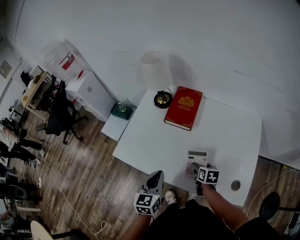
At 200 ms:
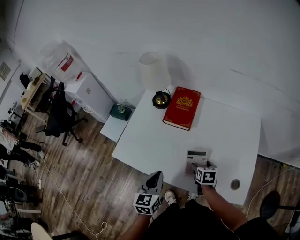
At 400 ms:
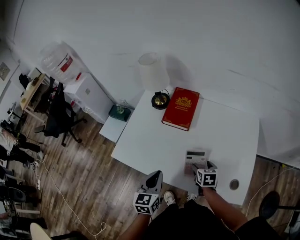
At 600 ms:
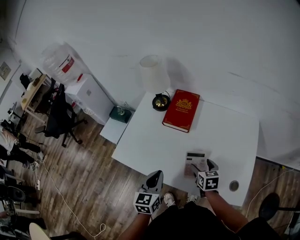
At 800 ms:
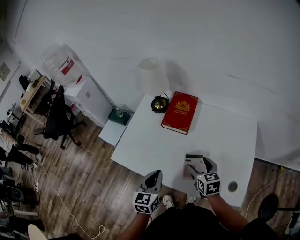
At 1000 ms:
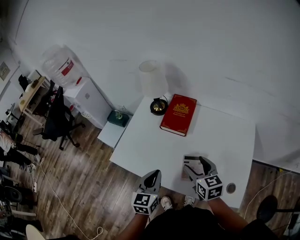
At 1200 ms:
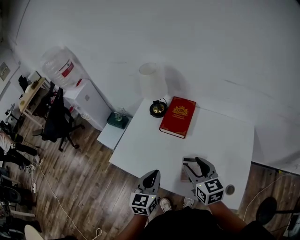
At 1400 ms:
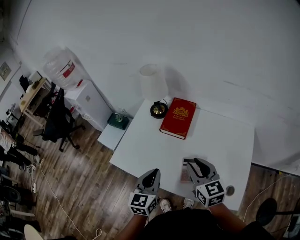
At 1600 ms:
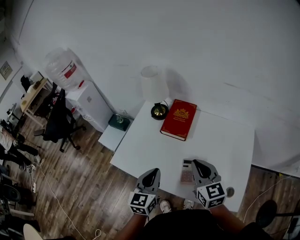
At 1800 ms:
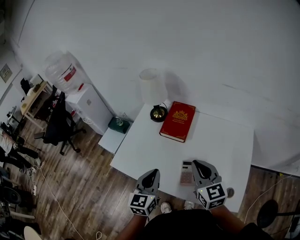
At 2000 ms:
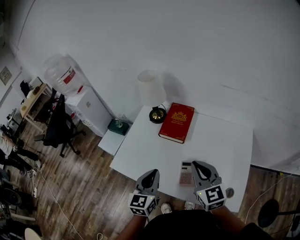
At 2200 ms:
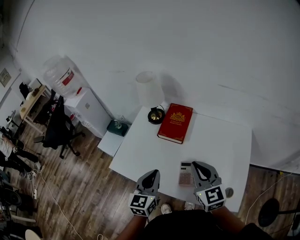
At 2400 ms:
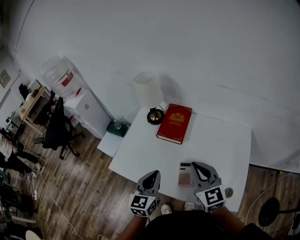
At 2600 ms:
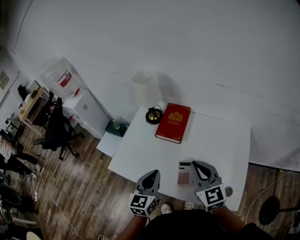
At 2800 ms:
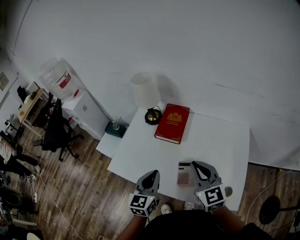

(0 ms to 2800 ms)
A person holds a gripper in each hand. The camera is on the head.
0 ms - 1400 ms: The right gripper travels upward by roughly 25 cm, angles its fingers upward, by roughly 30 degrees, and closes, while the left gripper travels upward by roughly 5 cm.
1400 ms - 2800 ms: There are only small adjustments of the grippers.

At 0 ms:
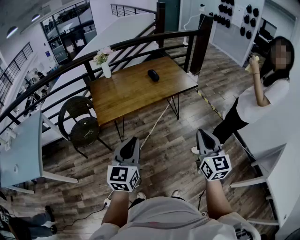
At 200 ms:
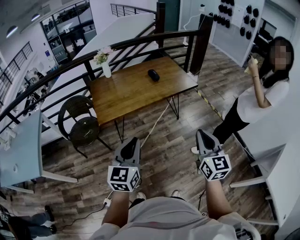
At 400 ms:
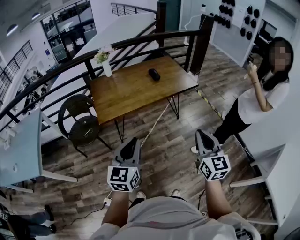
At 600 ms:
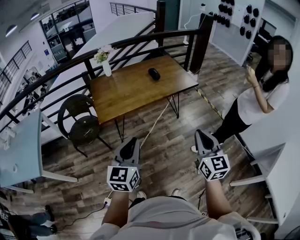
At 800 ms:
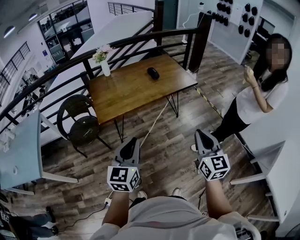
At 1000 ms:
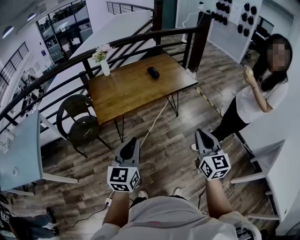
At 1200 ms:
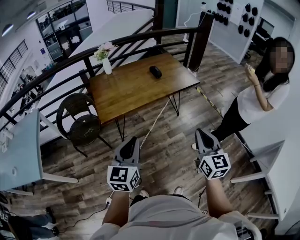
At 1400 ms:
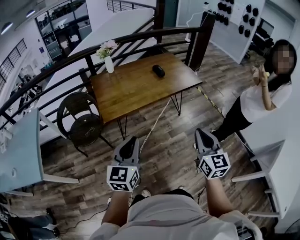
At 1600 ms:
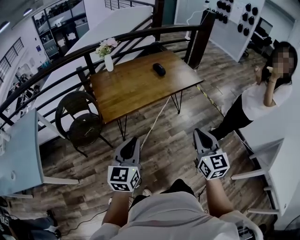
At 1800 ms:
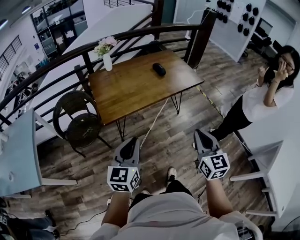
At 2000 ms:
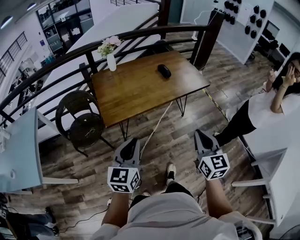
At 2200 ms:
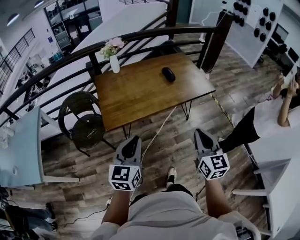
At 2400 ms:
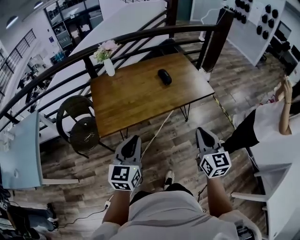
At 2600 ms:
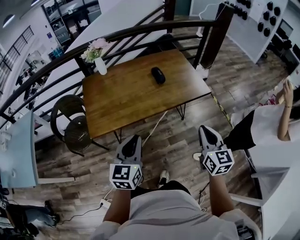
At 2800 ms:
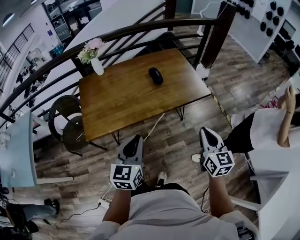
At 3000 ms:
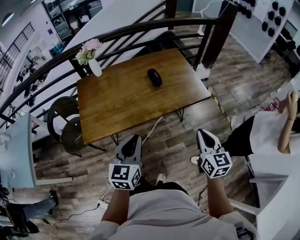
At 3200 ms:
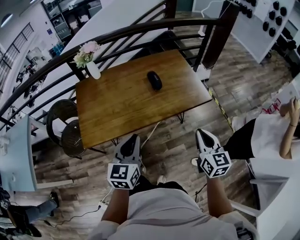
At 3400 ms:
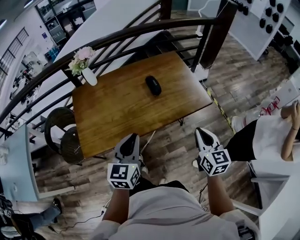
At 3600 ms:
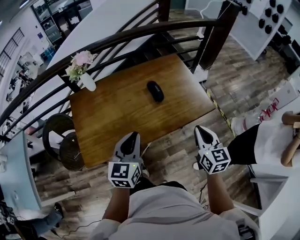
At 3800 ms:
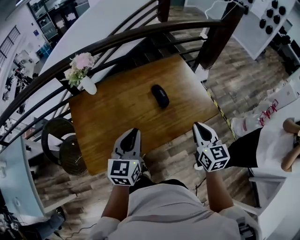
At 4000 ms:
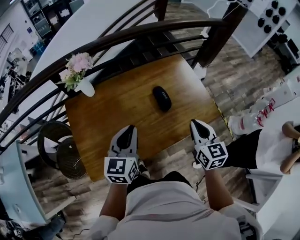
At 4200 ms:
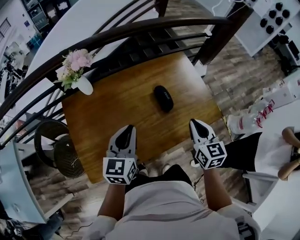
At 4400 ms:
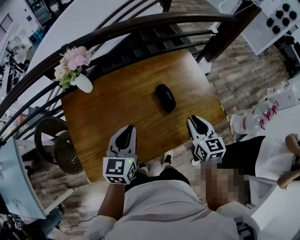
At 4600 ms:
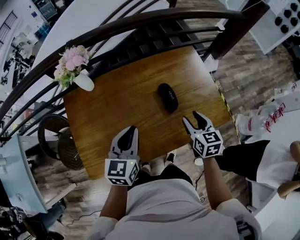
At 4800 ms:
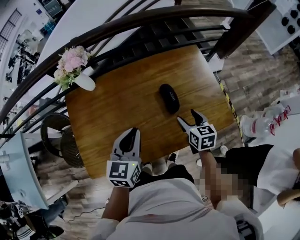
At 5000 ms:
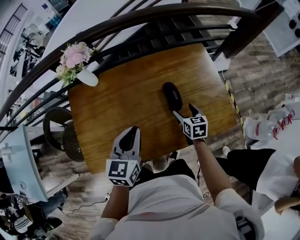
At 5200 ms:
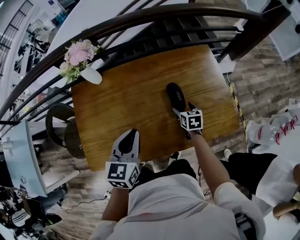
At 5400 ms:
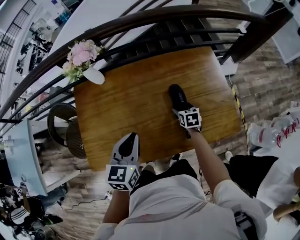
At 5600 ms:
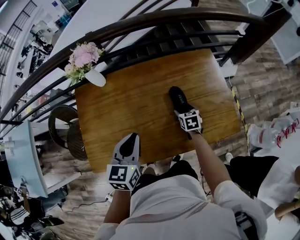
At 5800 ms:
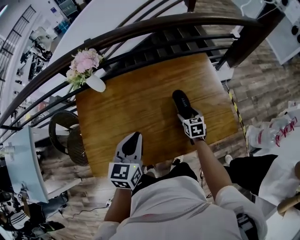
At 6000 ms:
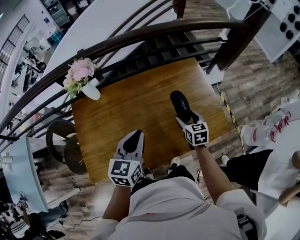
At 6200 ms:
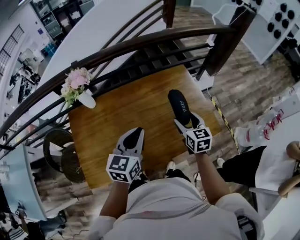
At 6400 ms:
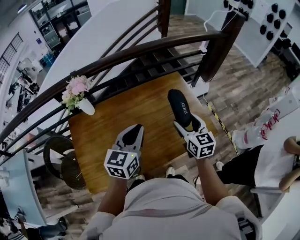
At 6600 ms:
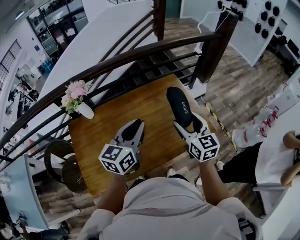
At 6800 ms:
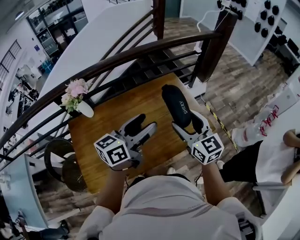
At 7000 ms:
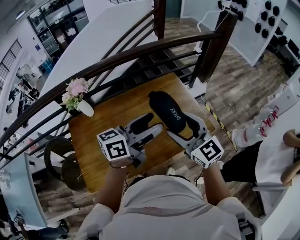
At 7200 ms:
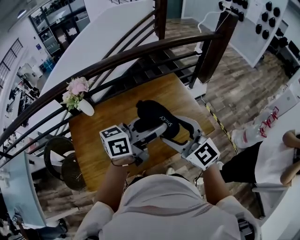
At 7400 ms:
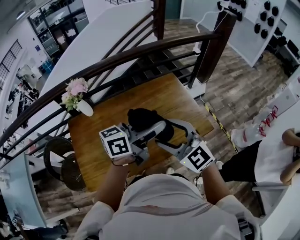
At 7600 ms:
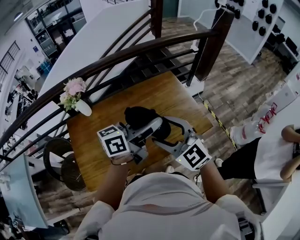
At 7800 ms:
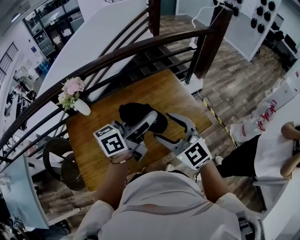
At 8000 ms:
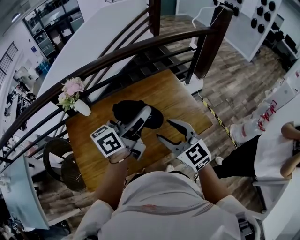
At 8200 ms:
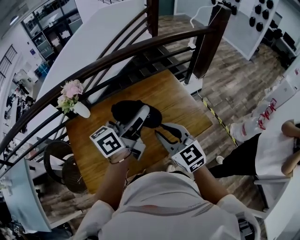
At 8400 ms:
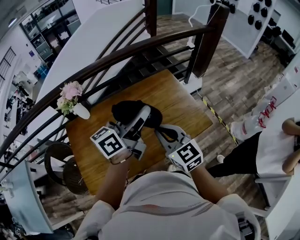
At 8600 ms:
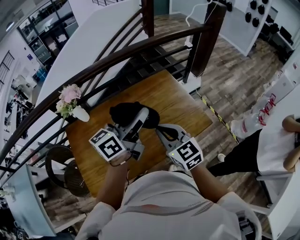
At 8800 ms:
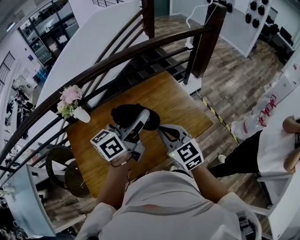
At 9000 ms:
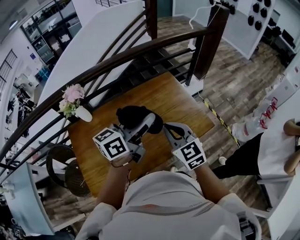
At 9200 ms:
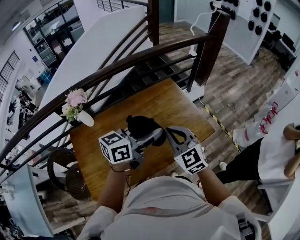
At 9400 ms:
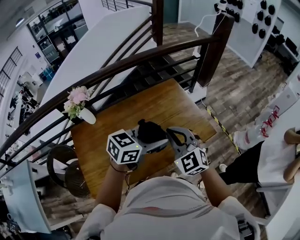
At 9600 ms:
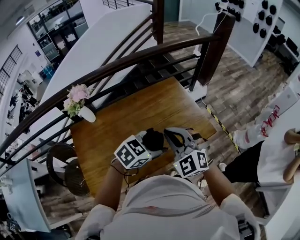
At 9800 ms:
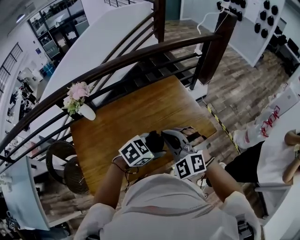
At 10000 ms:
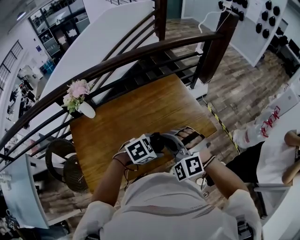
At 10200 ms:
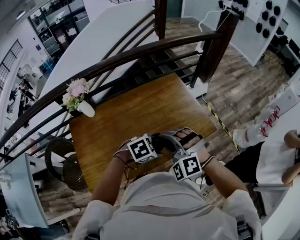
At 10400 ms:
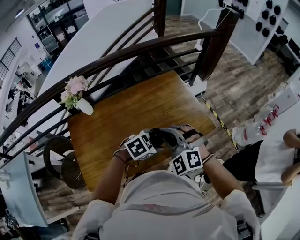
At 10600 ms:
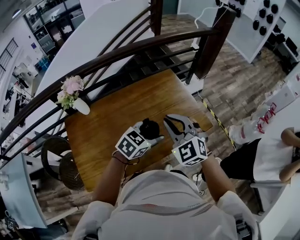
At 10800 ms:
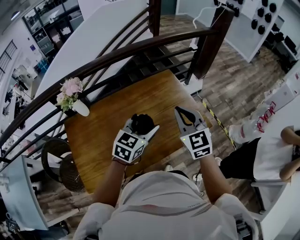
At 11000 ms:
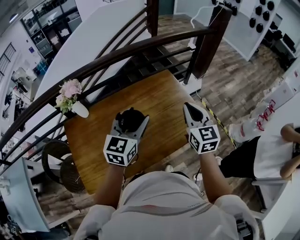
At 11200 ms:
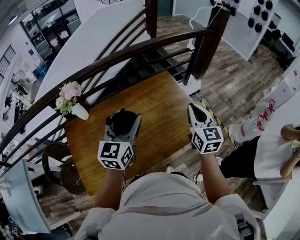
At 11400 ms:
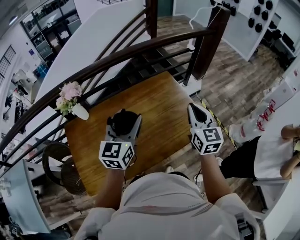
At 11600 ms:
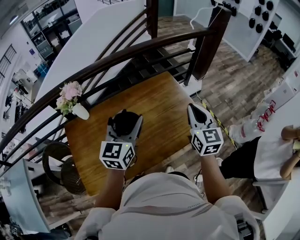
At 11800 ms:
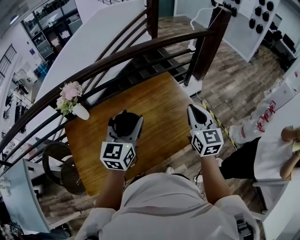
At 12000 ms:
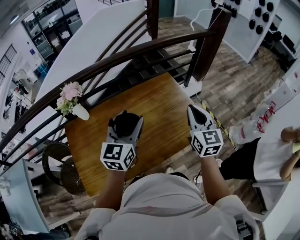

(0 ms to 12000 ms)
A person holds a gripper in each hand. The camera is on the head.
0 ms - 1600 ms: Both grippers move to the left, roughly 10 cm.
1600 ms - 3000 ms: Both grippers travel together forward and to the right, roughly 35 cm.
3000 ms - 4400 ms: The right gripper heads forward and to the left, covering roughly 35 cm. Meanwhile the left gripper travels forward by roughly 30 cm.
4400 ms - 6000 ms: The right gripper shifts some 15 cm downward and forward, and opens its fingers, while the left gripper moves to the right, roughly 5 cm.
6000 ms - 7600 ms: The left gripper travels upward and to the right by about 20 cm, tilts its fingers about 30 degrees upward, and opens. Meanwhile the right gripper is displaced upward and backward by roughly 30 cm, and rotates about 50 degrees.
7600 ms - 9000 ms: The right gripper changes place by about 5 cm, turns by approximately 20 degrees, and closes.
9000 ms - 10400 ms: The left gripper is displaced downward by roughly 20 cm, and tilts its fingers some 60 degrees downward; the right gripper shifts by approximately 5 cm, and rolls counterclockwise, seen from behind, by some 50 degrees.
10400 ms - 12000 ms: The right gripper is displaced to the right, forward and upward by roughly 20 cm, and rolls clockwise, seen from behind, by approximately 60 degrees. The left gripper shifts about 20 cm upward, to the left and forward, and tilts its fingers some 40 degrees upward.

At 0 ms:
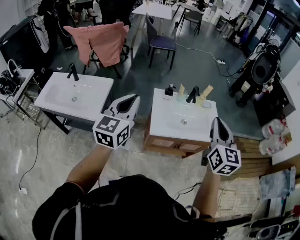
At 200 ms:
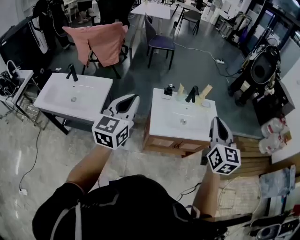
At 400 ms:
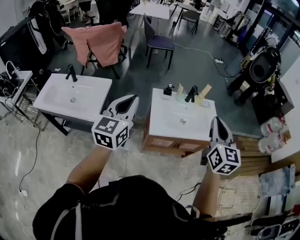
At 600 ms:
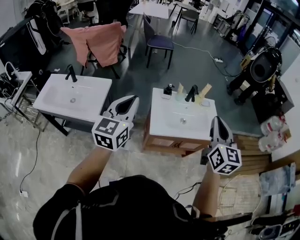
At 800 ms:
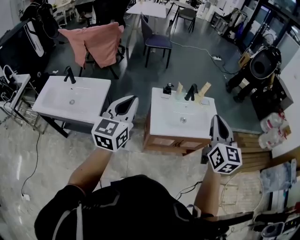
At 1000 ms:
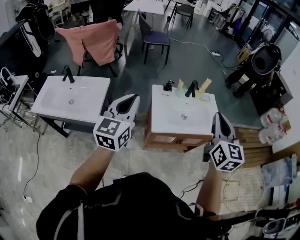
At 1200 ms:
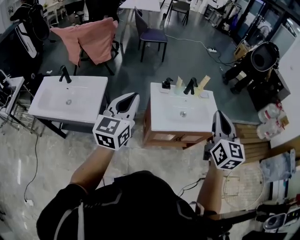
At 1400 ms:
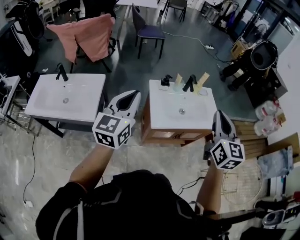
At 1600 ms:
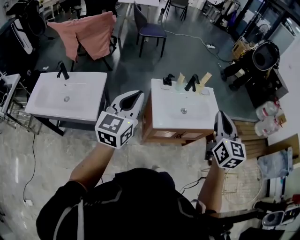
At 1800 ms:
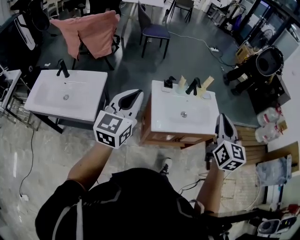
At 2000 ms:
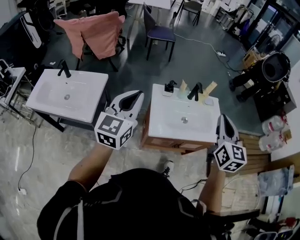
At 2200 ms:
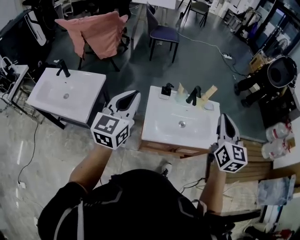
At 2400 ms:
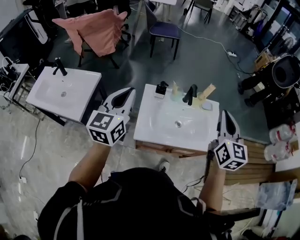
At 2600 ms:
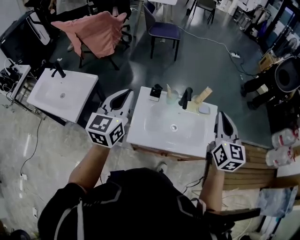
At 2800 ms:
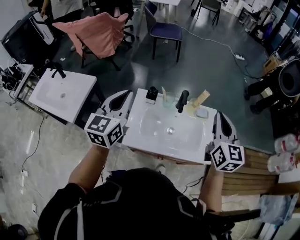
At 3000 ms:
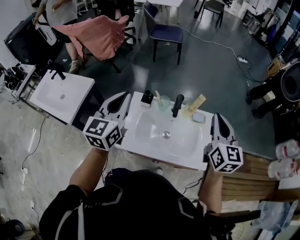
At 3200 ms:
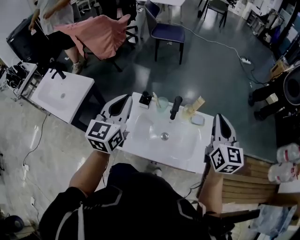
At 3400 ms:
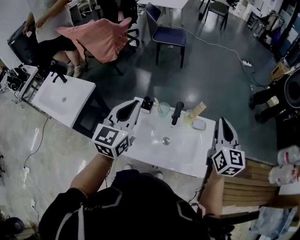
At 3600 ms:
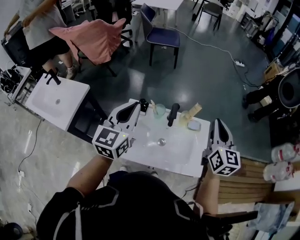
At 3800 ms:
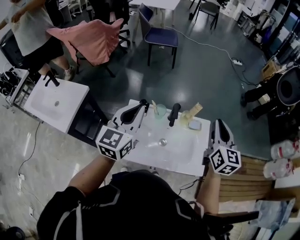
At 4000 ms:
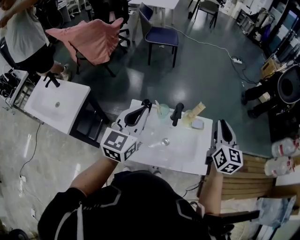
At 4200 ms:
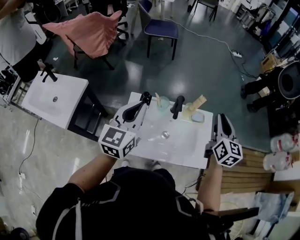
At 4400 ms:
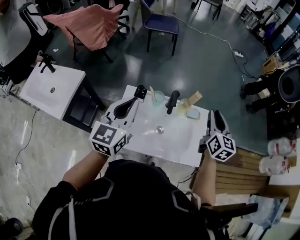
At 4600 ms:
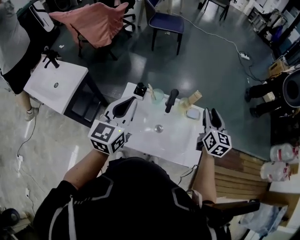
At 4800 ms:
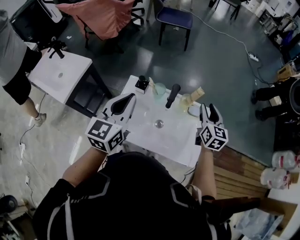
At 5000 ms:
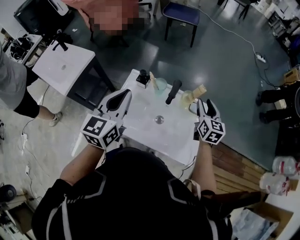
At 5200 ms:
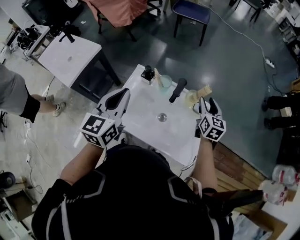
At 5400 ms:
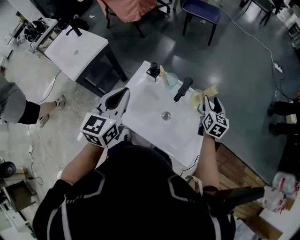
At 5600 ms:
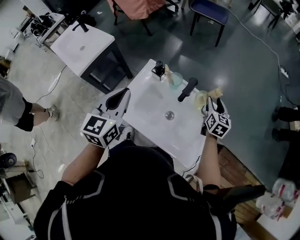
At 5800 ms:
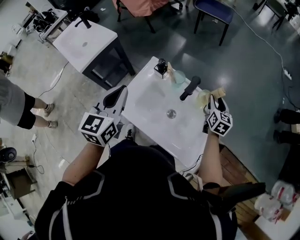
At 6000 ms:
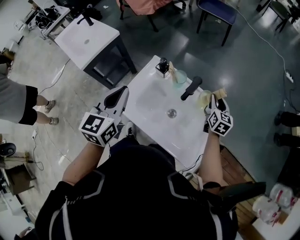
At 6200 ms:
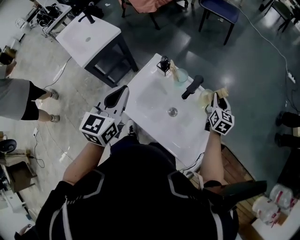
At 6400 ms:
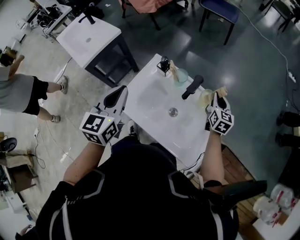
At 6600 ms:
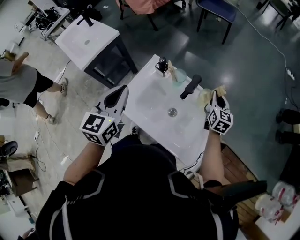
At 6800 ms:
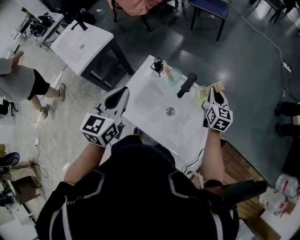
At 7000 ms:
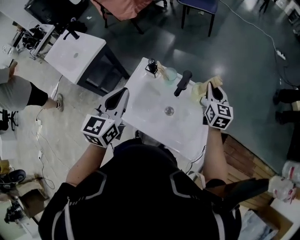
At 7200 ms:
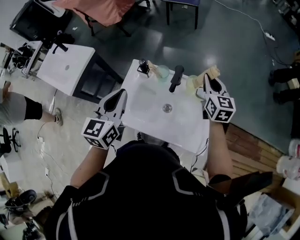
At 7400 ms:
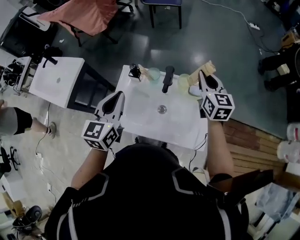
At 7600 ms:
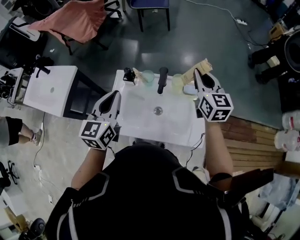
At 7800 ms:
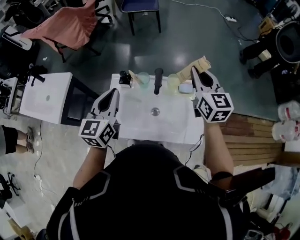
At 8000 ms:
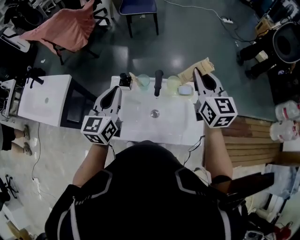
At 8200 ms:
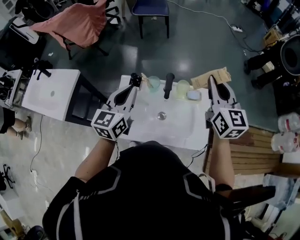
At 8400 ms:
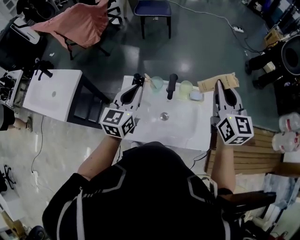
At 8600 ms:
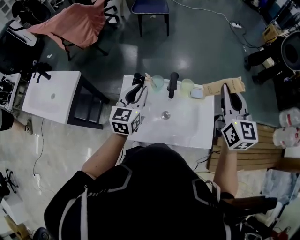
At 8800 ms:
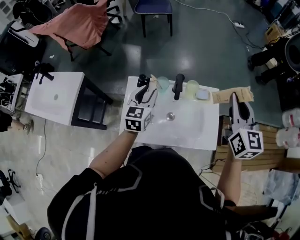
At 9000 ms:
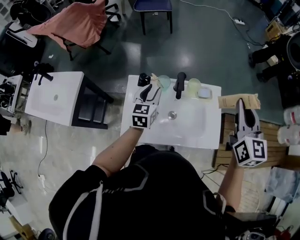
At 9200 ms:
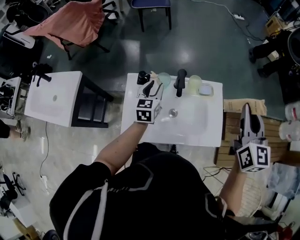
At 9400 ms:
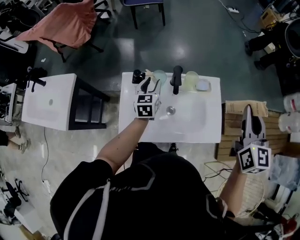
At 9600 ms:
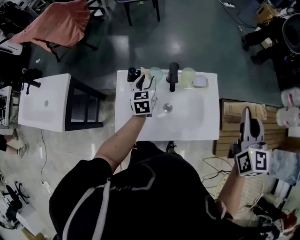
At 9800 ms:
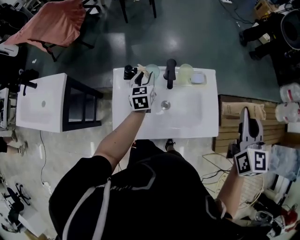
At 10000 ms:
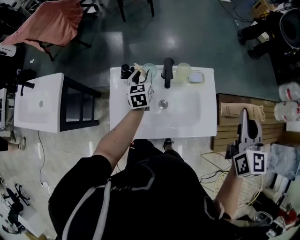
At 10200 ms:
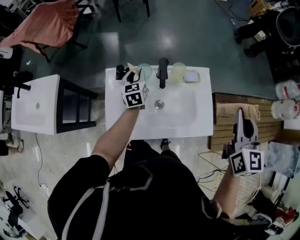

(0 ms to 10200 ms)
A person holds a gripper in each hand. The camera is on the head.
0 ms - 1400 ms: The grippers make only small movements.
1400 ms - 3000 ms: The grippers both shift forward and to the right by roughly 35 cm.
3000 ms - 4400 ms: The right gripper is displaced downward and forward by approximately 10 cm, and opens its fingers. Meanwhile the left gripper ends up approximately 5 cm from where it was.
4400 ms - 5800 ms: The left gripper heads downward and backward, covering approximately 10 cm, and turns by roughly 30 degrees, while the right gripper moves downward and forward, roughly 25 cm, and turns by approximately 20 degrees.
5800 ms - 7200 ms: The right gripper moves upward, some 10 cm, and closes its fingers.
7200 ms - 8800 ms: The right gripper goes roughly 20 cm upward and backward, and rotates roughly 20 degrees; the left gripper travels forward and downward by approximately 15 cm, and opens its fingers.
8800 ms - 10200 ms: The left gripper goes some 15 cm downward and forward, while the right gripper heads backward and to the right, covering roughly 10 cm.
